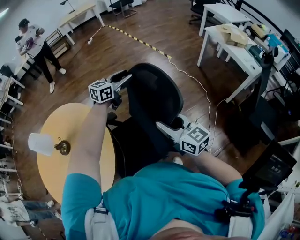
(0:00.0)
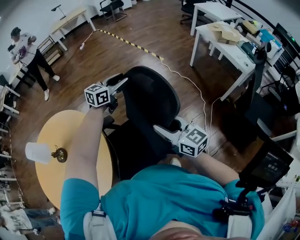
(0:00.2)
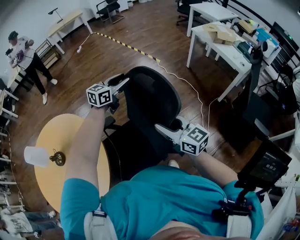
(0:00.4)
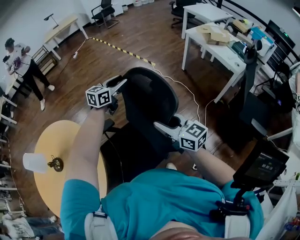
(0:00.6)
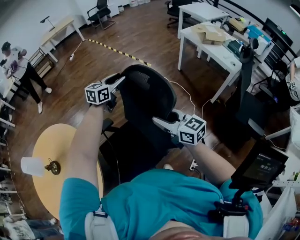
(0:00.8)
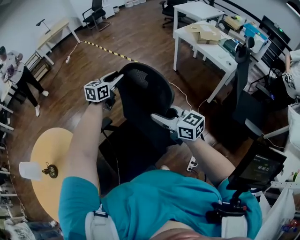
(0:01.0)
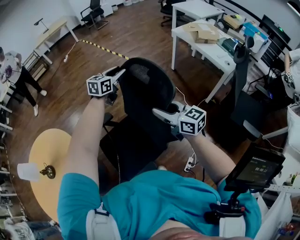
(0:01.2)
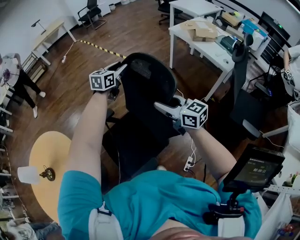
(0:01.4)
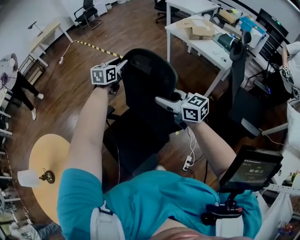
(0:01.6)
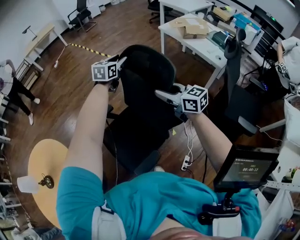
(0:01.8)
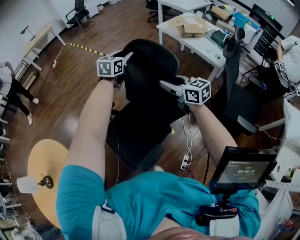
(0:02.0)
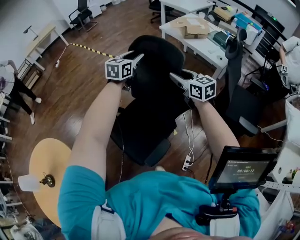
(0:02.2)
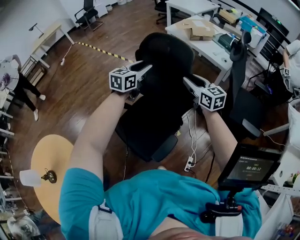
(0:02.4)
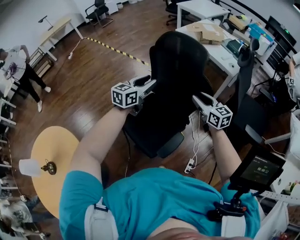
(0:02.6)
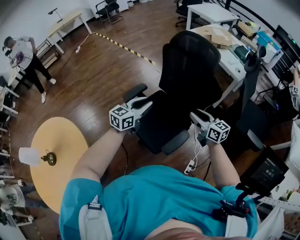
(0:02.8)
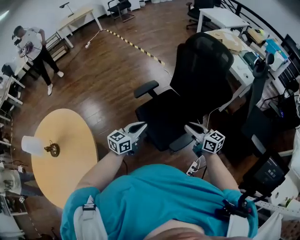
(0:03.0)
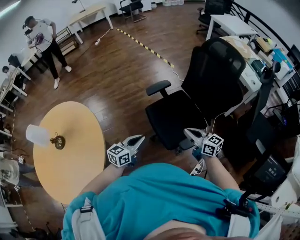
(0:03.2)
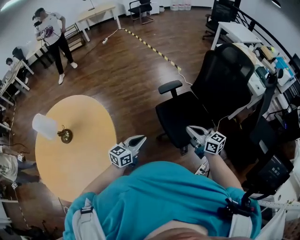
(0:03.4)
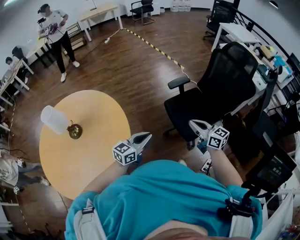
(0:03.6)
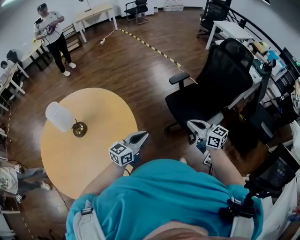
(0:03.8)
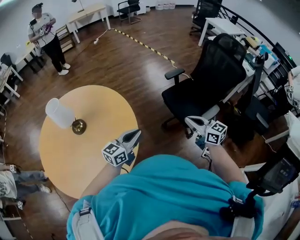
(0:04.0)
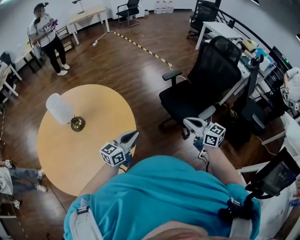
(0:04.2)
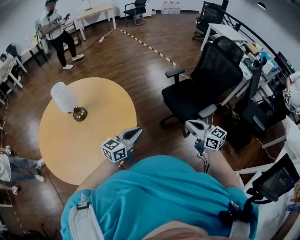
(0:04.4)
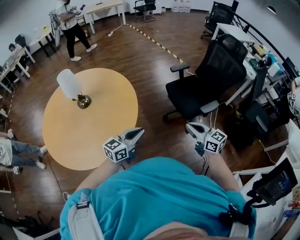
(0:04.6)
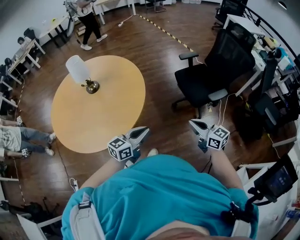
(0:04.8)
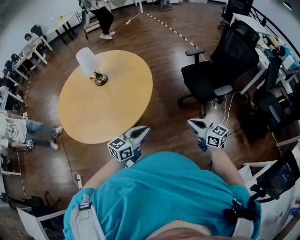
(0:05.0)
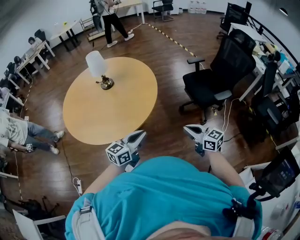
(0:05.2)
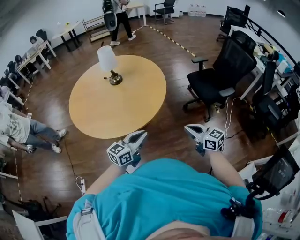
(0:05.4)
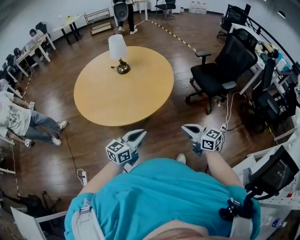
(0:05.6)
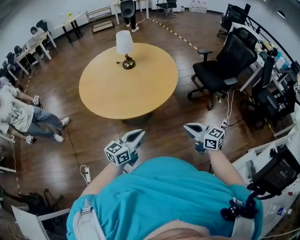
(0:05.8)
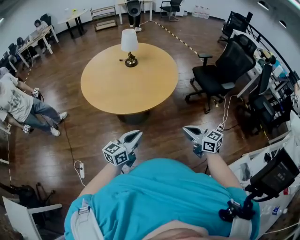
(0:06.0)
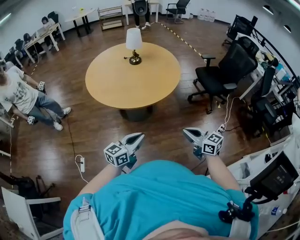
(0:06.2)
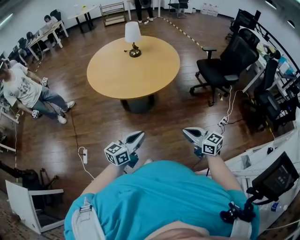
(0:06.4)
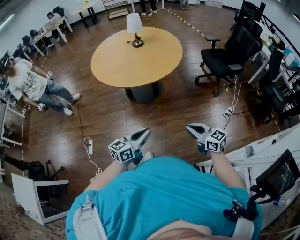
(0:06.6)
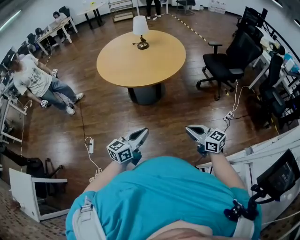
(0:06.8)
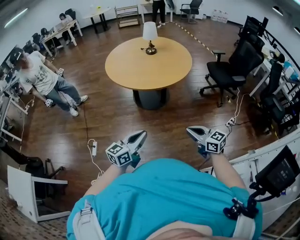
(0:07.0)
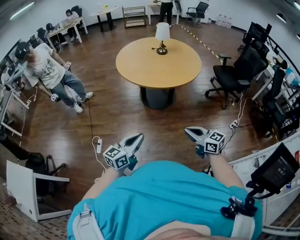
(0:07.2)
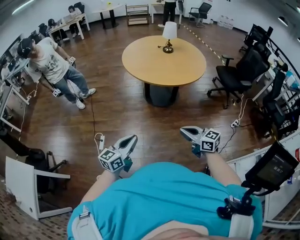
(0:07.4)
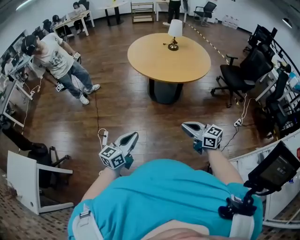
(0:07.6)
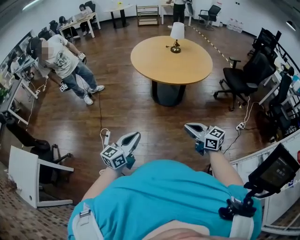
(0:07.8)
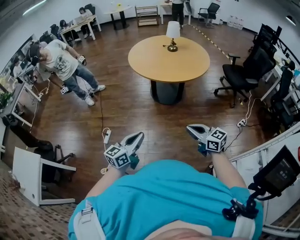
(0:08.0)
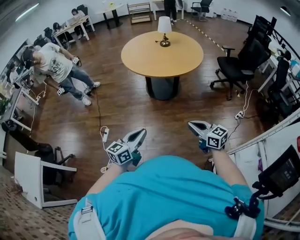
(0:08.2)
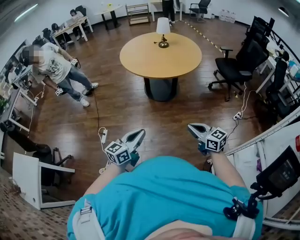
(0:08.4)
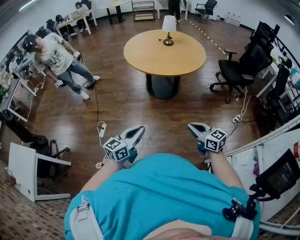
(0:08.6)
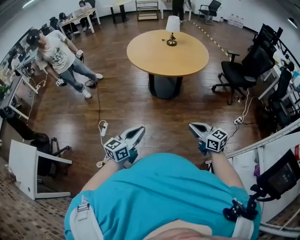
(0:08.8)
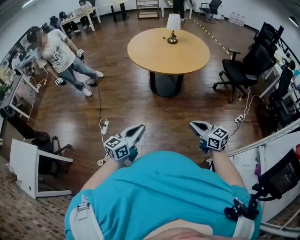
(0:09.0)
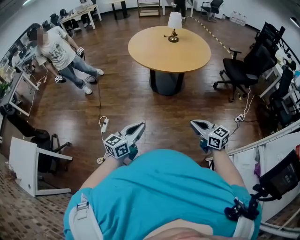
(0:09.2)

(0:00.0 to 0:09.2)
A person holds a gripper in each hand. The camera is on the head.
0:00.0 - 0:01.6: The grippers both shift to the right and forward by approximately 30 cm.
0:01.6 - 0:03.0: The left gripper travels backward by approximately 30 cm, and closes, while the right gripper moves downward and backward, approximately 15 cm.
0:03.0 - 0:04.6: The two grippers travel together, backward and to the left, roughly 50 cm. The right gripper closes.
0:04.6 - 0:06.2: The pair of grippers is taken backward and to the left, some 60 cm.
0:06.2 - 0:07.6: The grippers both shift backward and to the left by about 30 cm.
0:07.6 - 0:09.2: The two grippers go about 10 cm to the right.

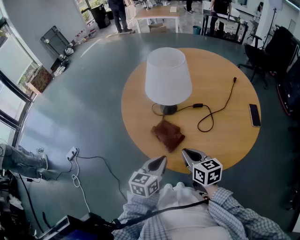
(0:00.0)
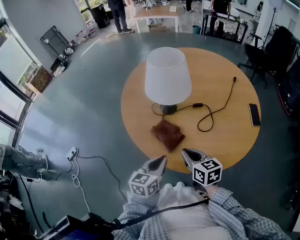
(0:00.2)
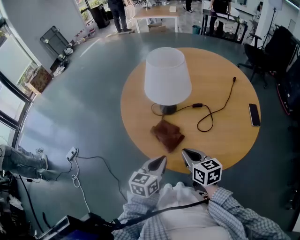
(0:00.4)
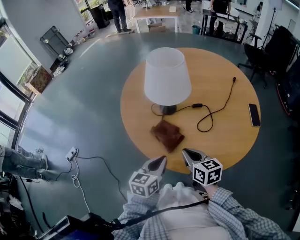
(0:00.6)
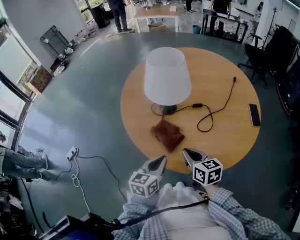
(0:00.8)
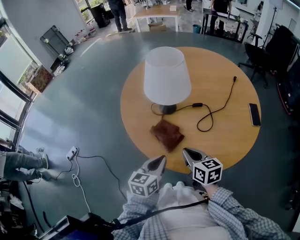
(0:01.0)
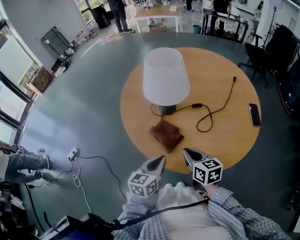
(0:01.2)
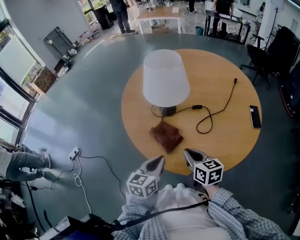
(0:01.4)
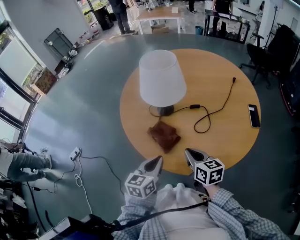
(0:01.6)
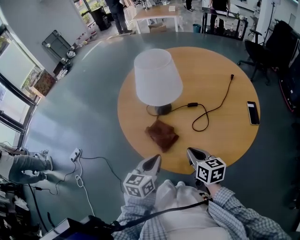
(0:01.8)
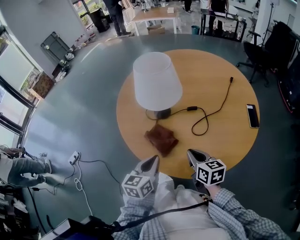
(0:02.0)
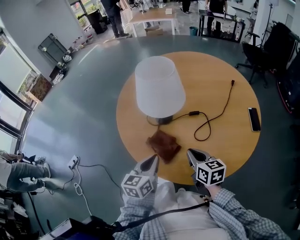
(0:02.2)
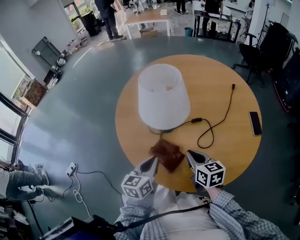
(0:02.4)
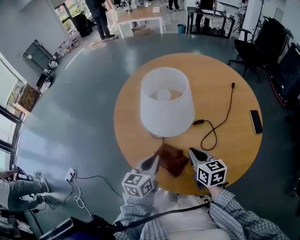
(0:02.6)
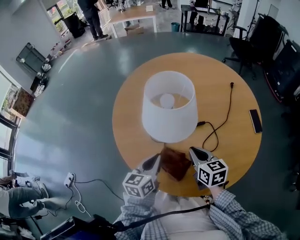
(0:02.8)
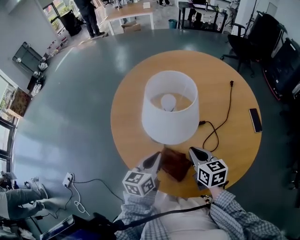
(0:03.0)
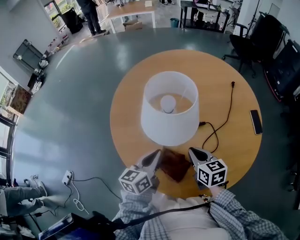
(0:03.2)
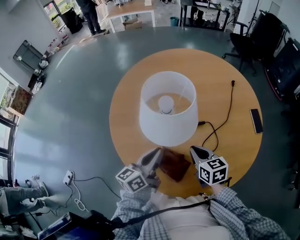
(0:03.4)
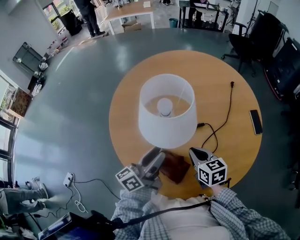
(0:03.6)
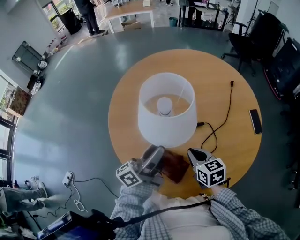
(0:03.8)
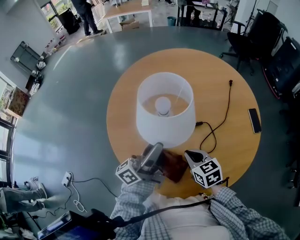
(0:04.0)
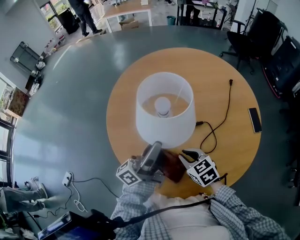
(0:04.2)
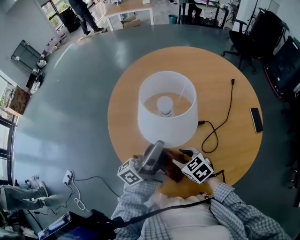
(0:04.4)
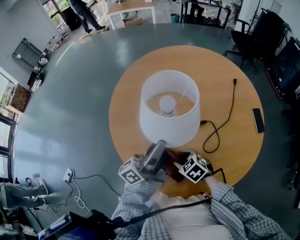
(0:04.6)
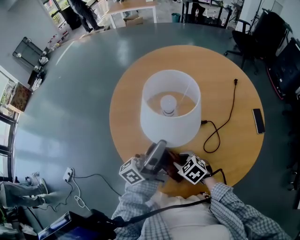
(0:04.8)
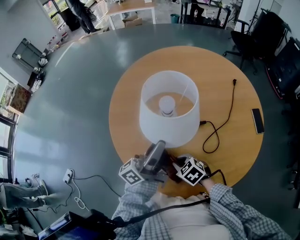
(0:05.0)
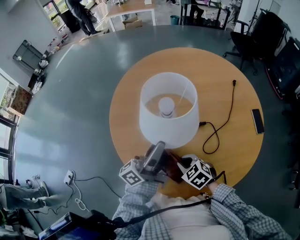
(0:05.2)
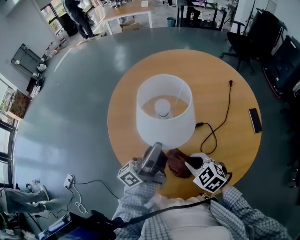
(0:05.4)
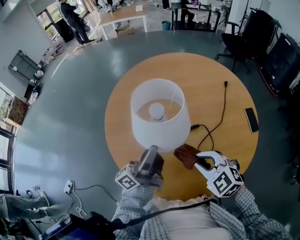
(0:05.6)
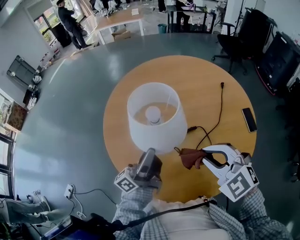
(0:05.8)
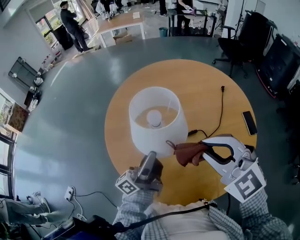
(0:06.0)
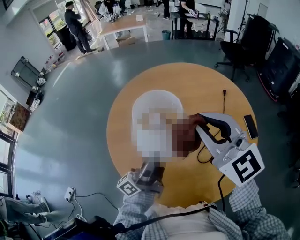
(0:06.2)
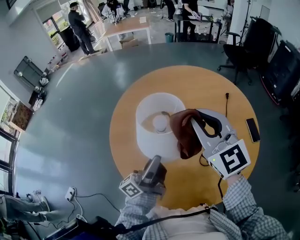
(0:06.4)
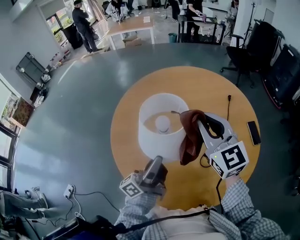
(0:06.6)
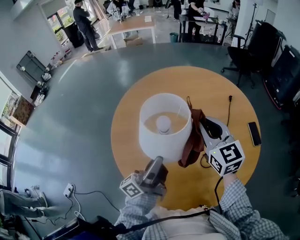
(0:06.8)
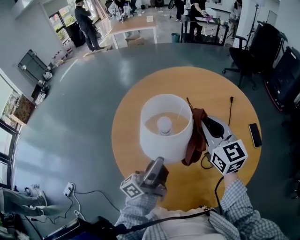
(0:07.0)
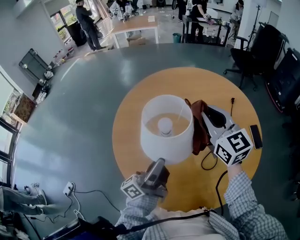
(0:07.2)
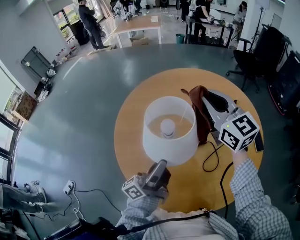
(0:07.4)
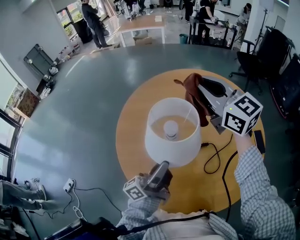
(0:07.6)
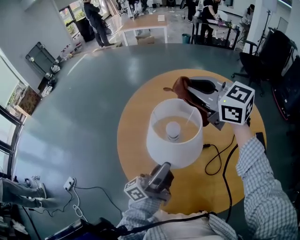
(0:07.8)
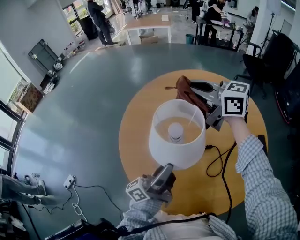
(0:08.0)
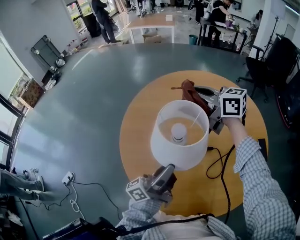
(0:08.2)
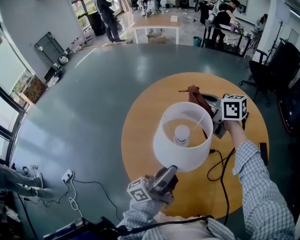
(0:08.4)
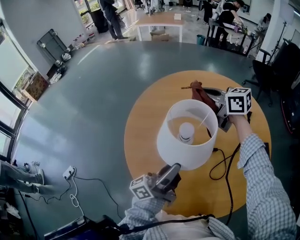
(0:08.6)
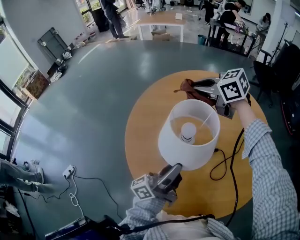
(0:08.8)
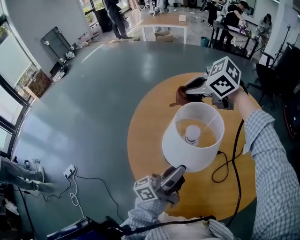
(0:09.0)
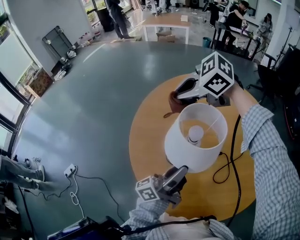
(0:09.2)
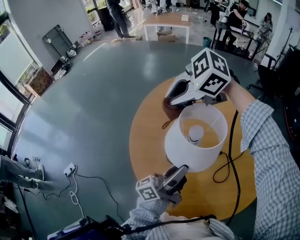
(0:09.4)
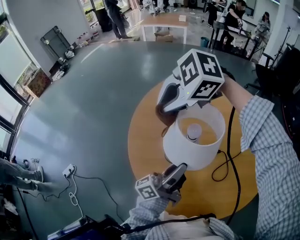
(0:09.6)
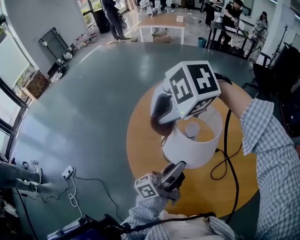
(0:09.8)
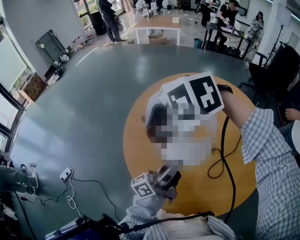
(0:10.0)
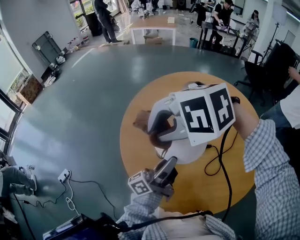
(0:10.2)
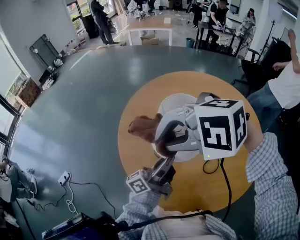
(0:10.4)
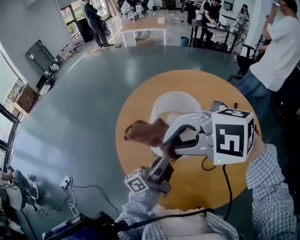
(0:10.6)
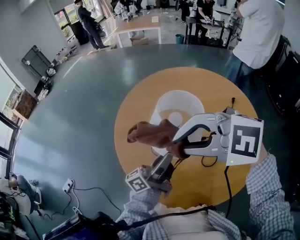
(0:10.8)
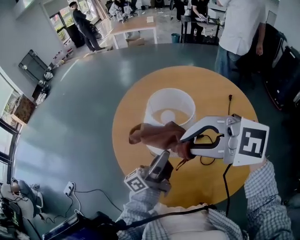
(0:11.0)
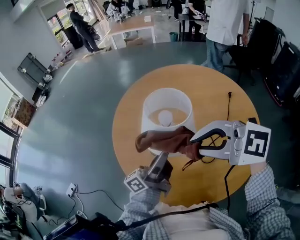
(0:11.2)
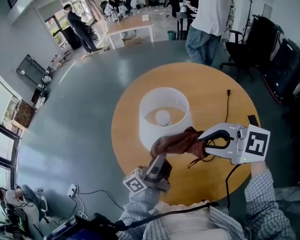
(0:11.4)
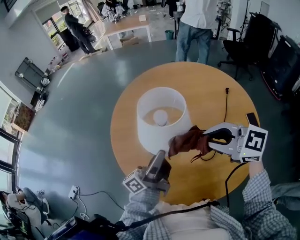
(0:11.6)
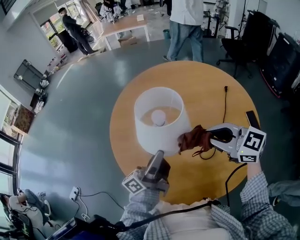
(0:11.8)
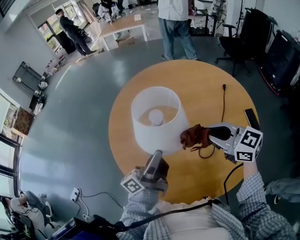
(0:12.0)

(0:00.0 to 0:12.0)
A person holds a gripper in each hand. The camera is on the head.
0:00.0 - 0:01.6: The grippers stay close to where they were, moving slightly.
0:01.6 - 0:03.0: Both grippers move forward, approximately 15 cm.
0:03.0 - 0:04.4: The left gripper shifts some 15 cm upward, angles its fingers upward, by roughly 50 degrees, and opens. The right gripper heads downward and to the left, covering some 10 cm, swivels about 40 degrees, and opens up.
0:04.4 - 0:06.0: The right gripper is displaced upward by roughly 30 cm, swivels about 50 degrees, and closes.
0:06.0 - 0:07.6: The right gripper is displaced forward by approximately 20 cm, and changes its angle by some 40 degrees.
0:07.6 - 0:09.0: The right gripper is displaced to the left, downward and forward by approximately 15 cm, and angles its fingers downward, by roughly 40 degrees.
0:09.0 - 0:10.4: The right gripper changes place by roughly 25 cm, and twists approximately 50 degrees counterclockwise, seen from behind.
0:10.4 - 0:12.0: The right gripper changes place by some 25 cm, and angles its fingers upward, by roughly 30 degrees.

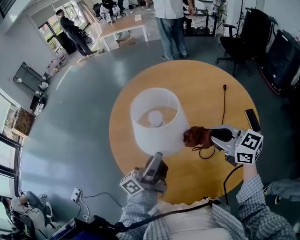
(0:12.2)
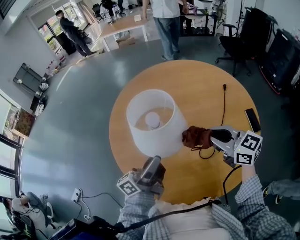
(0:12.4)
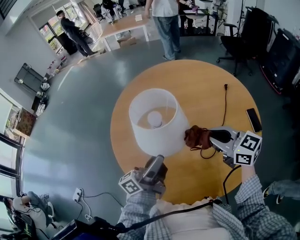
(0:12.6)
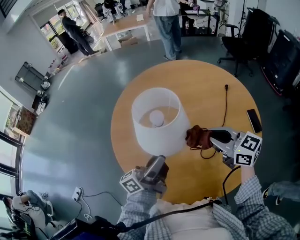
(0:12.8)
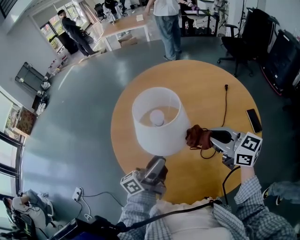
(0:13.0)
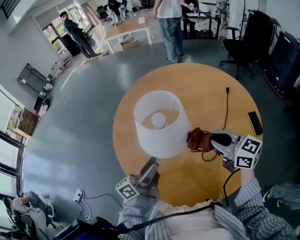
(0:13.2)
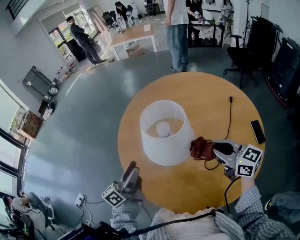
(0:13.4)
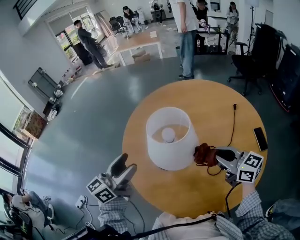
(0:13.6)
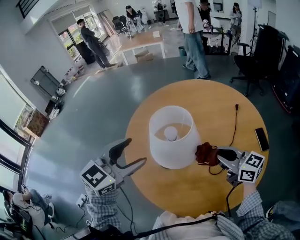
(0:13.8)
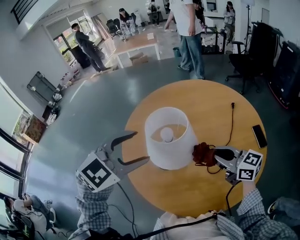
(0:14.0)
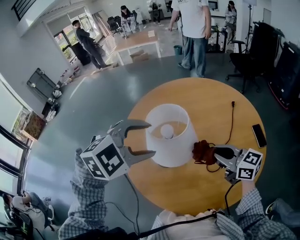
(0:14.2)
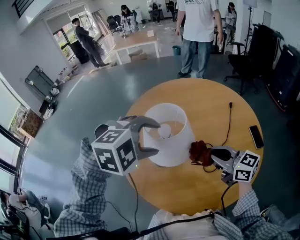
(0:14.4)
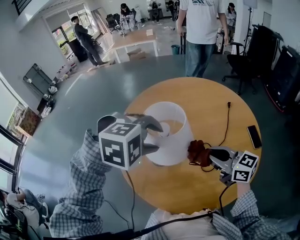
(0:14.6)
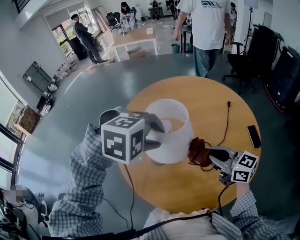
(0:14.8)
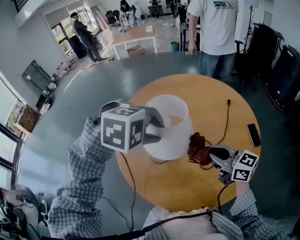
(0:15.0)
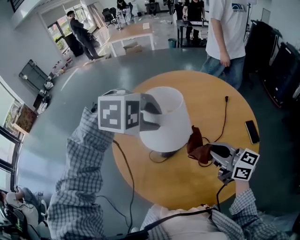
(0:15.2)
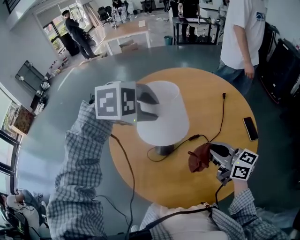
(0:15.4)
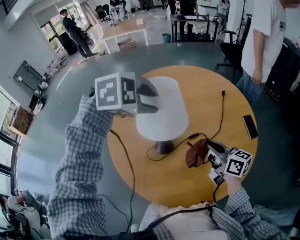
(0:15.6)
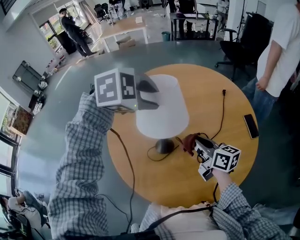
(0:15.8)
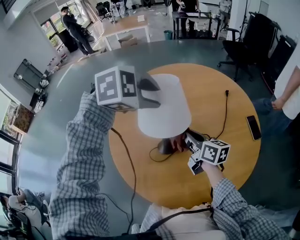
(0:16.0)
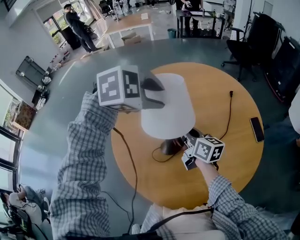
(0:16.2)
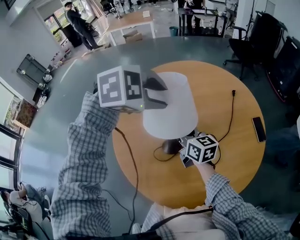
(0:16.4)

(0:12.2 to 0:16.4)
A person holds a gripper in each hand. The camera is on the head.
0:12.2 - 0:13.6: The left gripper shifts roughly 15 cm to the left and upward, changes its angle by approximately 50 degrees, and opens its fingers.
0:13.6 - 0:15.0: The left gripper heads to the right, covering some 15 cm, points its fingers approximately 70 degrees further downward, and closes its fingers.
0:15.0 - 0:16.4: The left gripper travels forward by some 10 cm. Meanwhile the right gripper is displaced to the left, forward and downward by some 20 cm, and turns by some 20 degrees.
